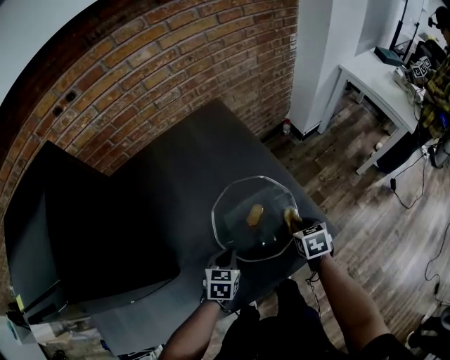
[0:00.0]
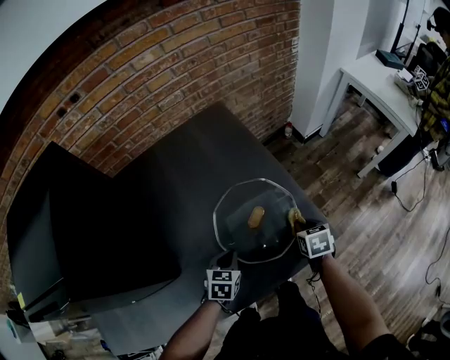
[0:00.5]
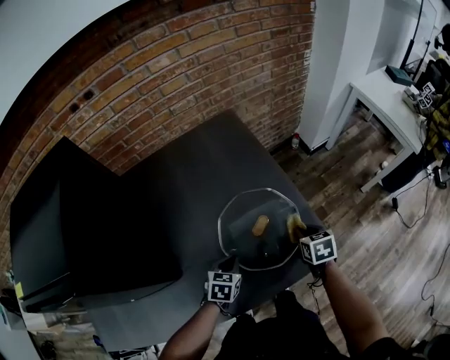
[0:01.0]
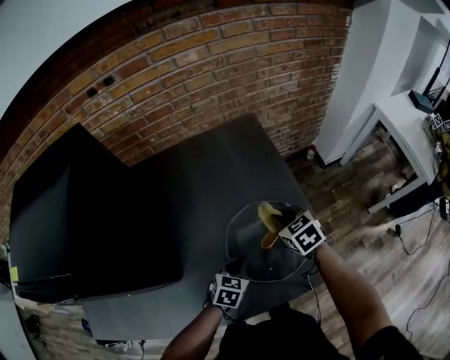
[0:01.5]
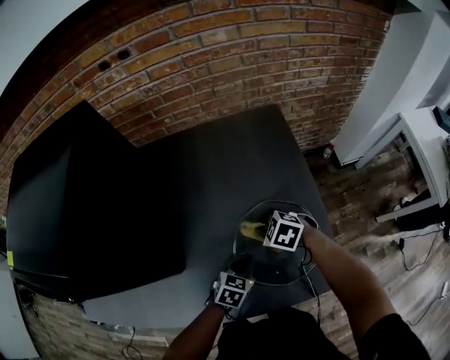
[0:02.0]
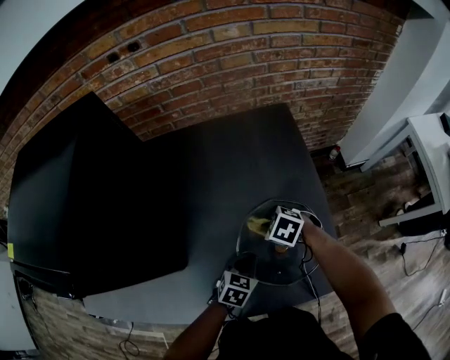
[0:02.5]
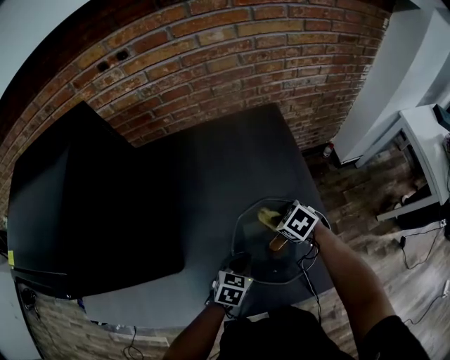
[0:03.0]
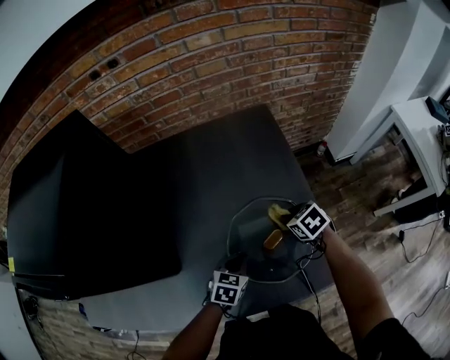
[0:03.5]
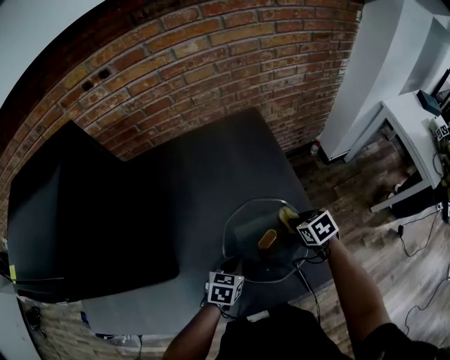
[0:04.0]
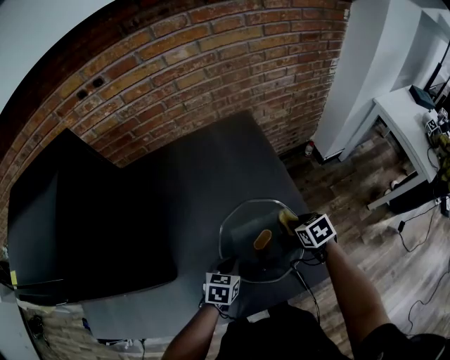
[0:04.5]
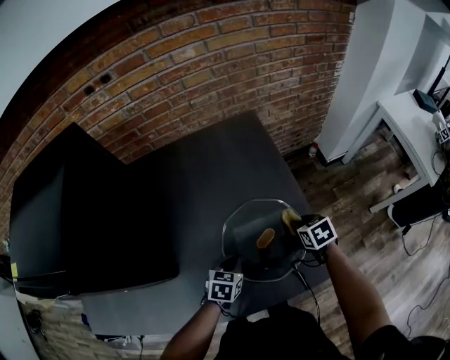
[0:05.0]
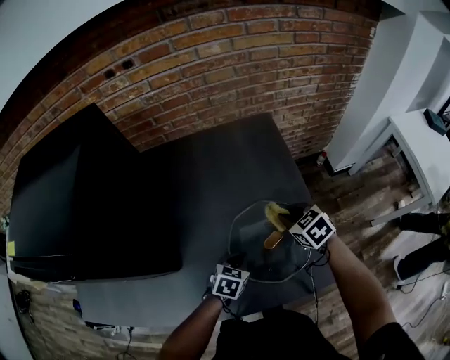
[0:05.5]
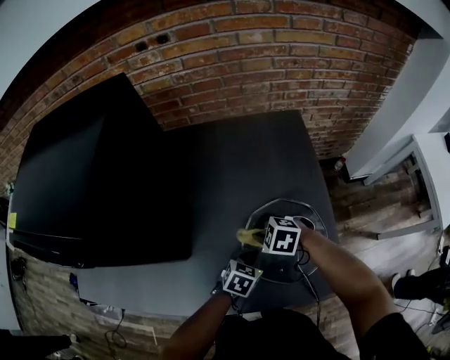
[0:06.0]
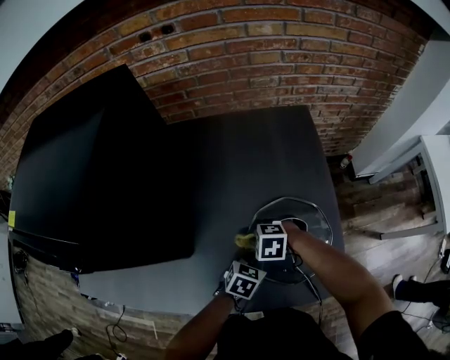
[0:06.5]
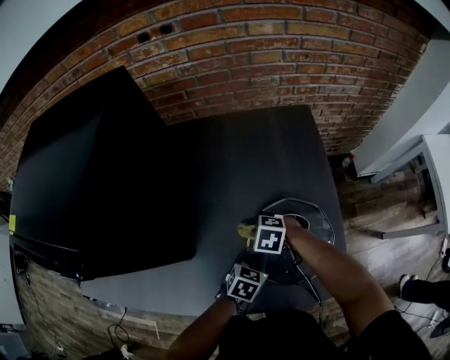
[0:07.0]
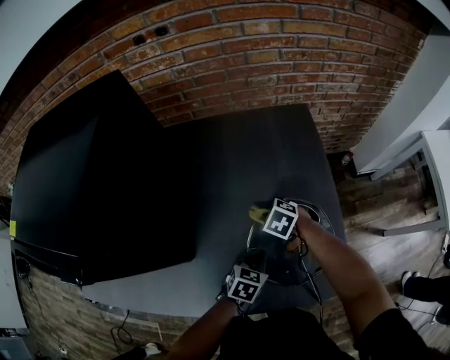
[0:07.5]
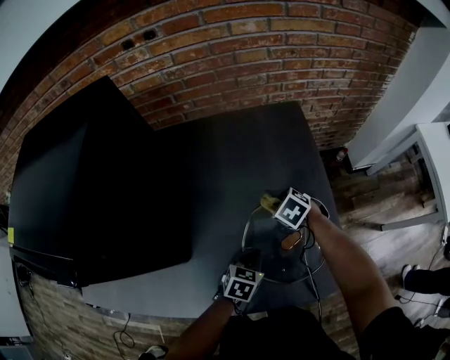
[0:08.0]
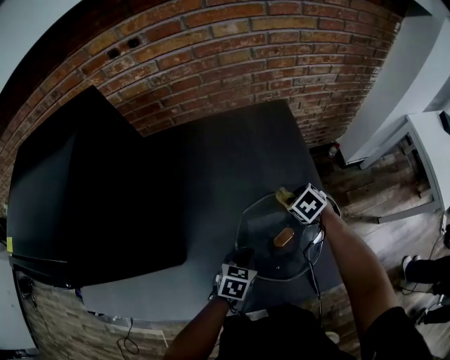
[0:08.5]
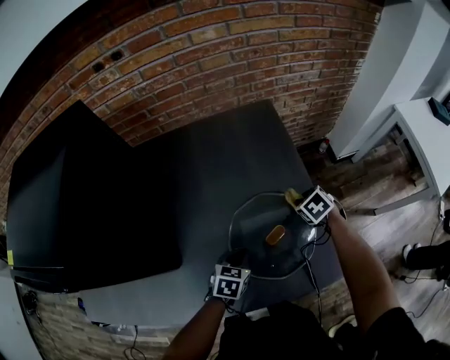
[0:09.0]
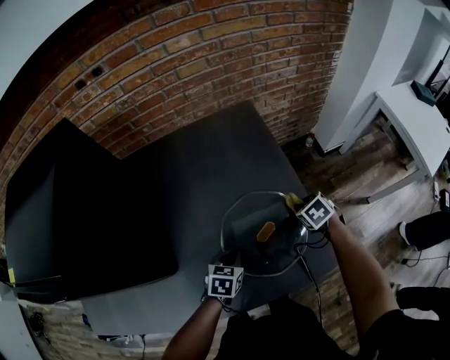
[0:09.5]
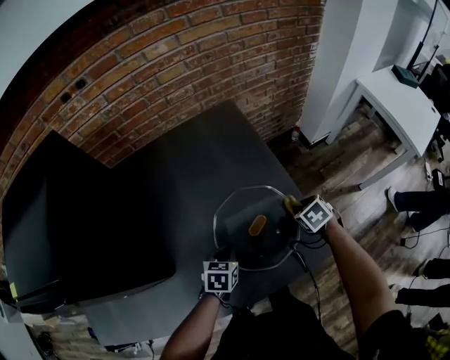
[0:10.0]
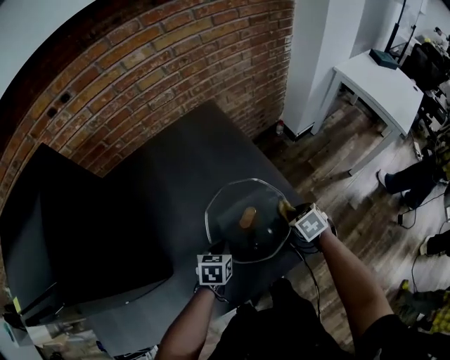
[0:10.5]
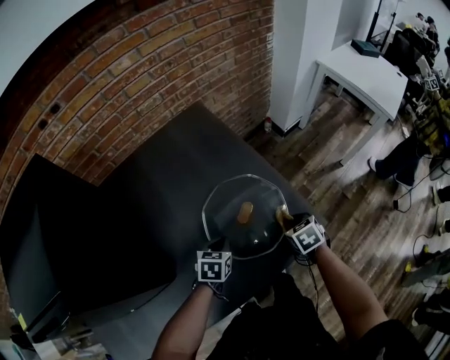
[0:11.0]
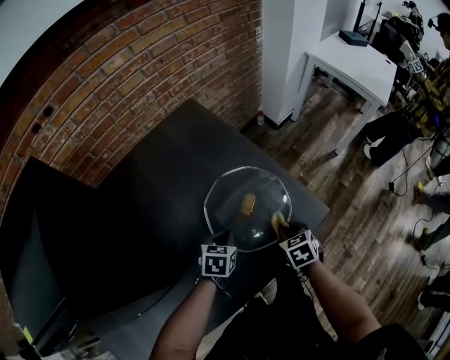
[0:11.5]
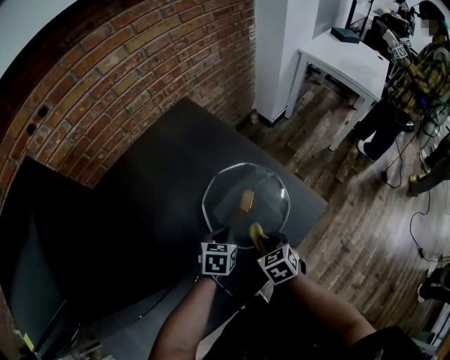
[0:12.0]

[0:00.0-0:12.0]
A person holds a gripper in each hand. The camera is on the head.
0:00.0 to 0:02.0: The right gripper moves about 10 cm upward and comes back, and rotates around the line of its fingers by some 60 degrees, counterclockwise from behind.
0:02.0 to 0:04.0: The right gripper heads to the right, covering roughly 15 cm, and twists roughly 40 degrees clockwise, seen from behind.
0:04.0 to 0:06.0: The right gripper moves roughly 20 cm, and twists some 60 degrees counterclockwise, seen from behind.
0:06.0 to 0:08.0: The right gripper moves roughly 15 cm, and turns by approximately 30 degrees.
0:08.0 to 0:10.0: The right gripper is displaced to the right and backward by some 25 cm, and swivels some 30 degrees.
0:10.0 to 0:12.0: The left gripper rotates roughly 20 degrees, while the right gripper shifts roughly 25 cm backward and to the left, and changes its angle by about 30 degrees.

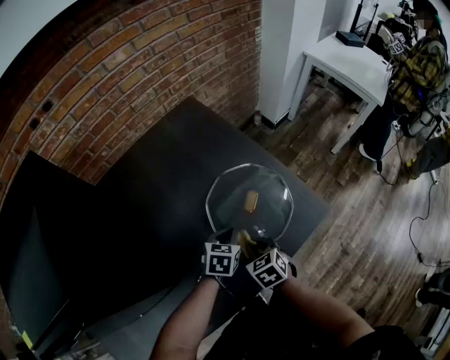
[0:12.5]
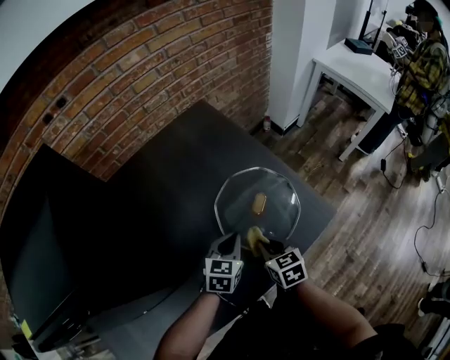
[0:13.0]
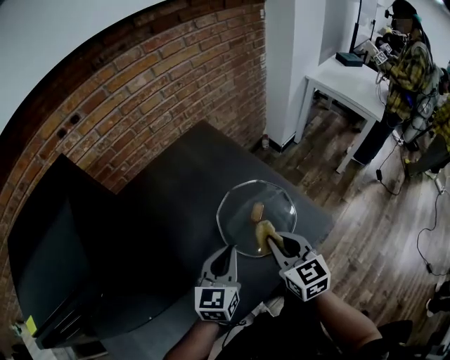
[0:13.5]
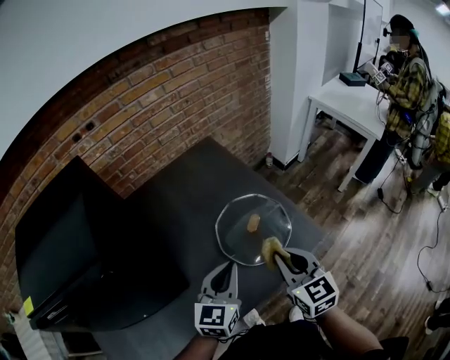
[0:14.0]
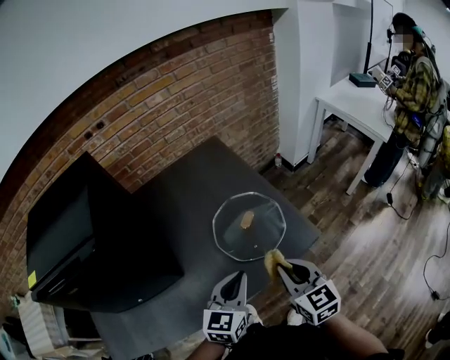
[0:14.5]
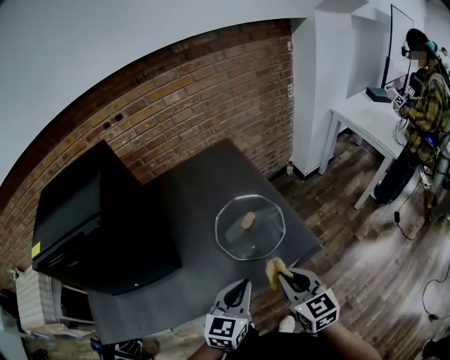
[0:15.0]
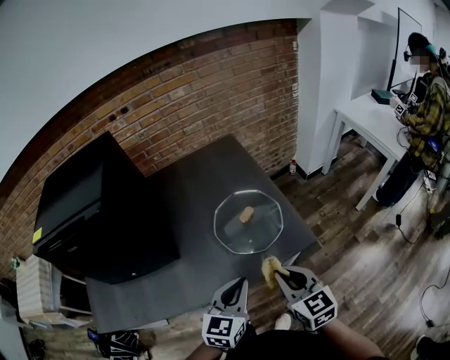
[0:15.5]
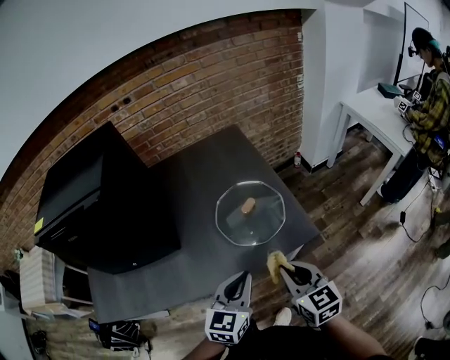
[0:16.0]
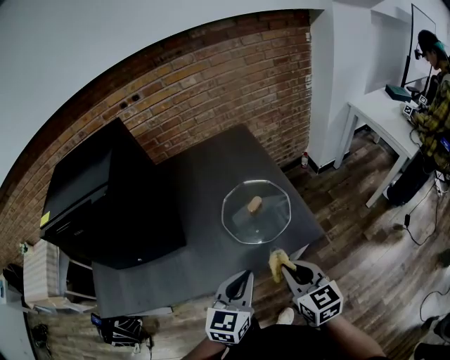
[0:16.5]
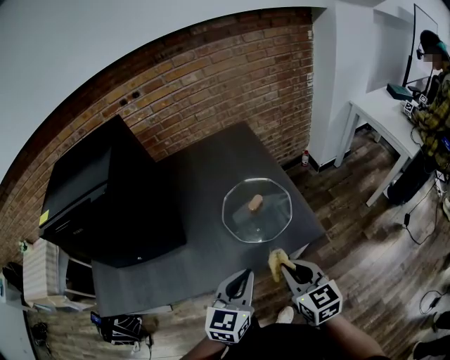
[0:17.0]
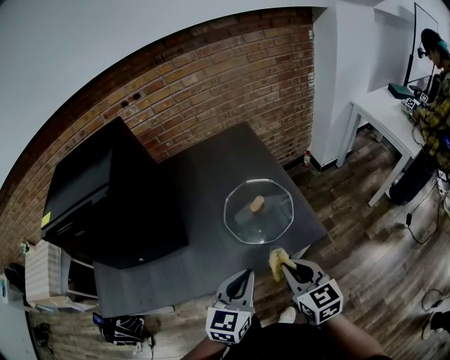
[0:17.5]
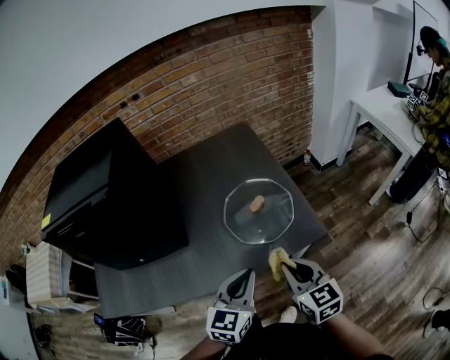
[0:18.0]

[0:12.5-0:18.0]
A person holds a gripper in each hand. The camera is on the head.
0:12.5 to 0:14.5: The right gripper shifts roughly 30 cm upward, to the right and backward, and angles its fingers upward, by some 30 degrees; the left gripper travels upward and backward by roughly 25 cm, and angles its fingers upward, by roughly 30 degrees.
0:14.5 to 0:16.0: The left gripper is displaced backward and to the right by roughly 10 cm, while the right gripper goes about 5 cm backward.
0:16.0 to 0:18.0: There are only small adjustments of the grippers.

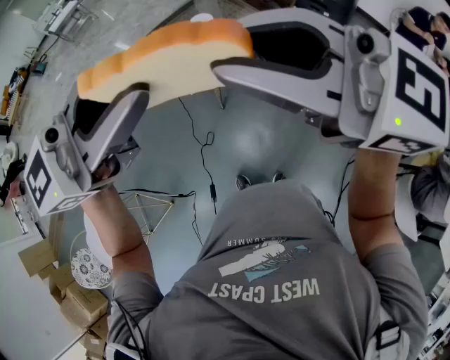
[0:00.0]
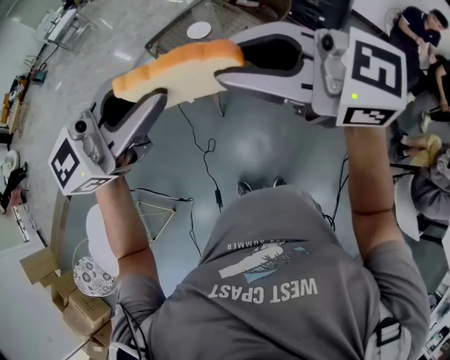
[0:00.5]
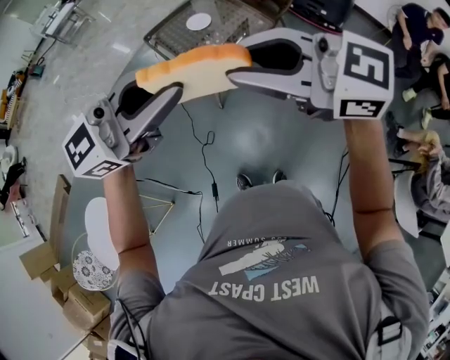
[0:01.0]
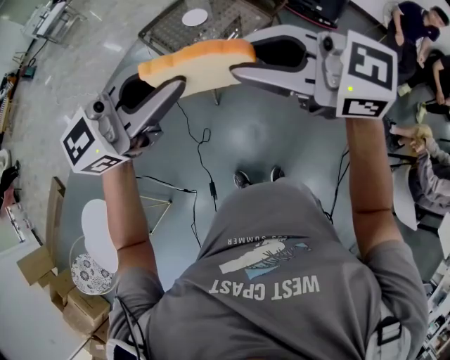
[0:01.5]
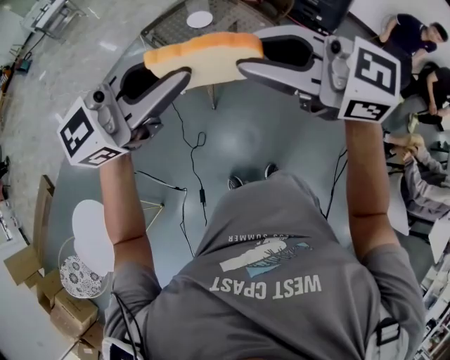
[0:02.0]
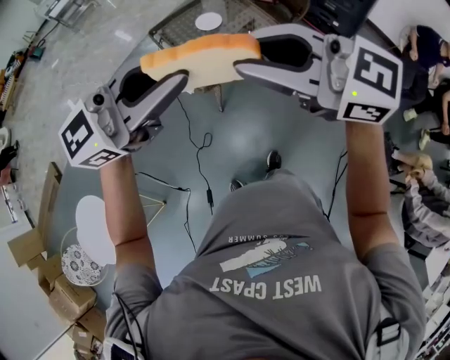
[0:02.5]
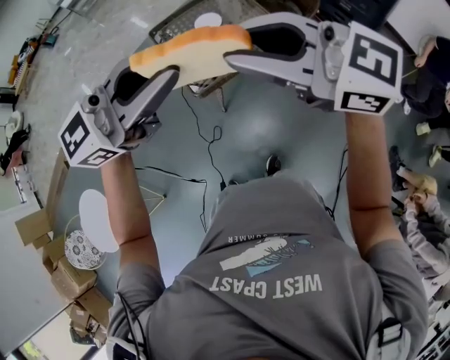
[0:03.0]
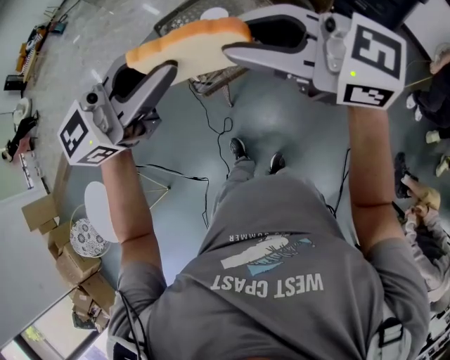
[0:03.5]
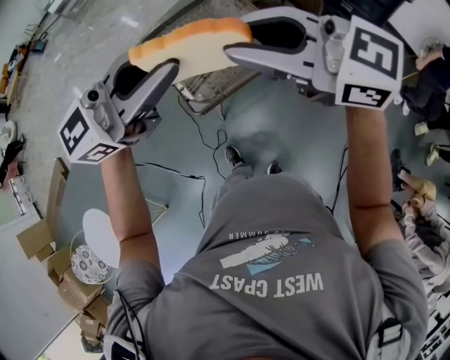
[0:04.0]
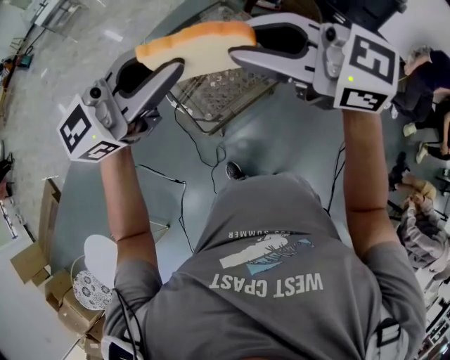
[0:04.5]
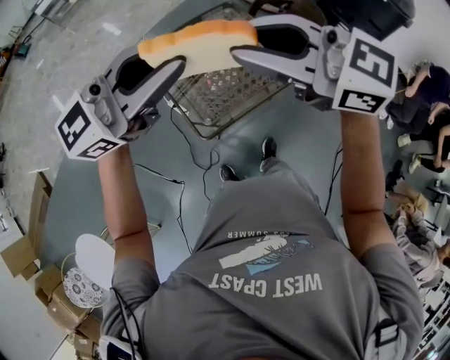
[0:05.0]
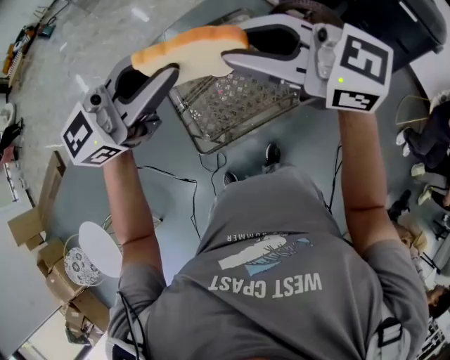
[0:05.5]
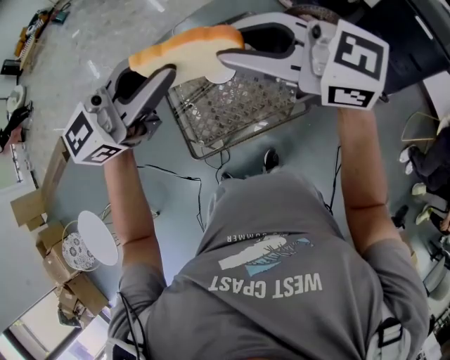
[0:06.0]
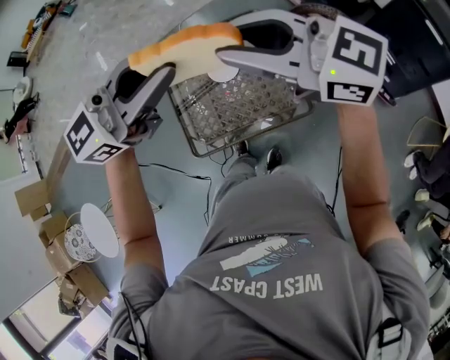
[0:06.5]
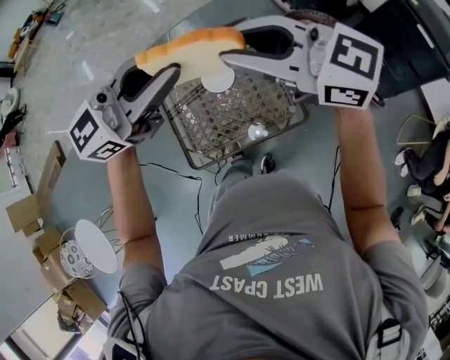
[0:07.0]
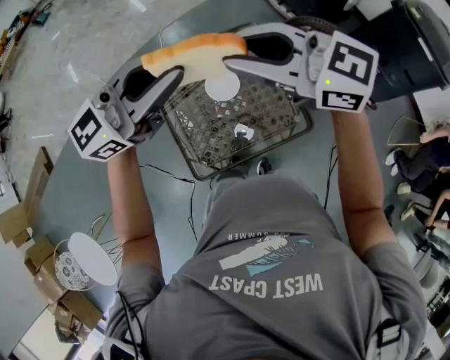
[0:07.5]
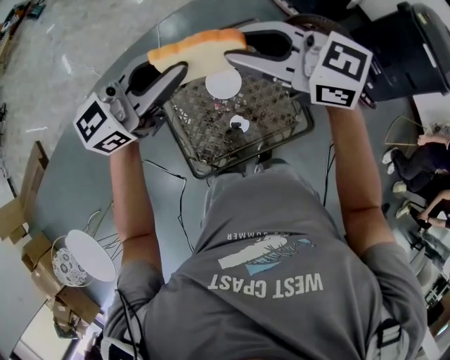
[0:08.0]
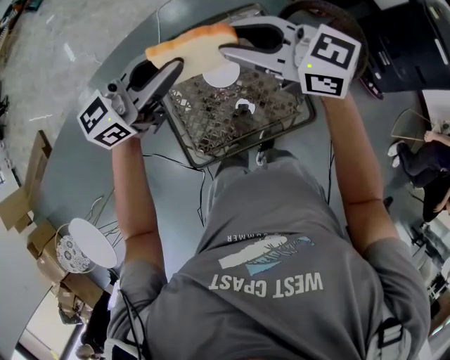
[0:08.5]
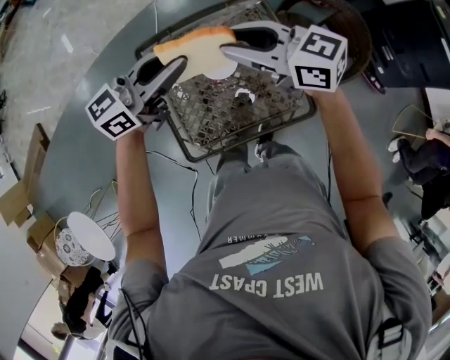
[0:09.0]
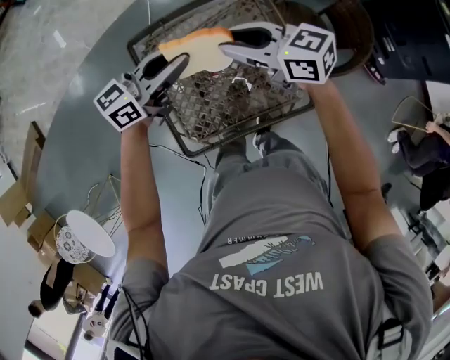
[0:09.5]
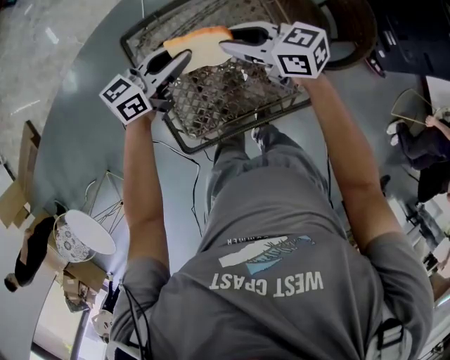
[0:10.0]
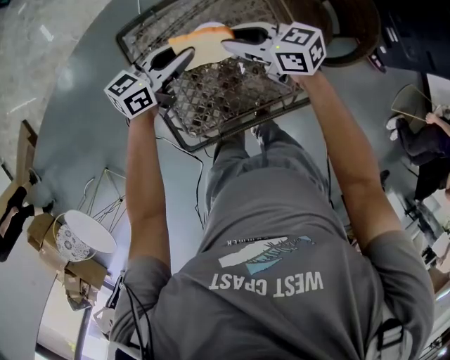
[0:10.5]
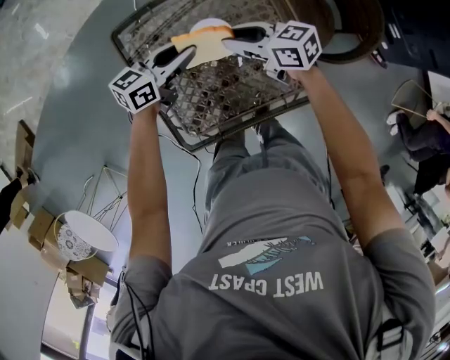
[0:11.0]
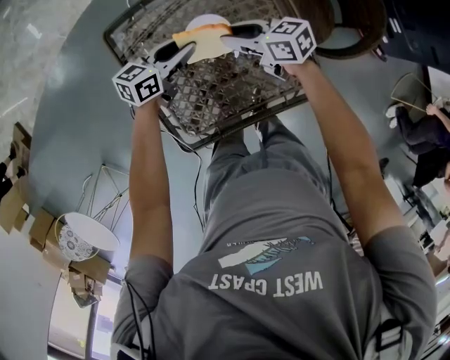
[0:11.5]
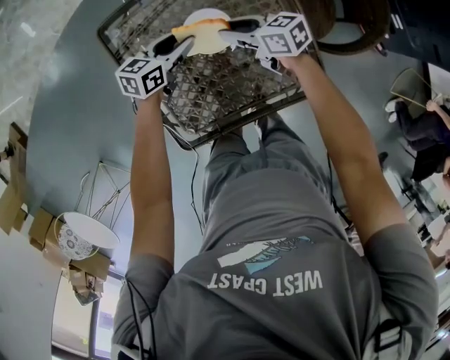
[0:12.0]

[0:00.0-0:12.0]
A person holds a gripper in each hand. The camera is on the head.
0:00.0 to 0:02.0: The two grippers go about 10 cm downward.
0:02.0 to 0:04.0: The right gripper changes place by roughly 30 cm. Meanwhile the left gripper changes place by approximately 30 cm.
0:04.0 to 0:06.0: The left gripper ends up some 25 cm from where it was; the right gripper ends up approximately 30 cm from where it was.
0:06.0 to 0:08.0: The left gripper changes place by approximately 20 cm, while the right gripper moves some 20 cm.
0:08.0 to 0:10.0: Both grippers move downward, about 25 cm. The right gripper rotates about 30 degrees; the left gripper swivels some 30 degrees.
0:10.0 to 0:12.0: The two grippers go roughly 20 cm downward. The left gripper turns by approximately 20 degrees.
